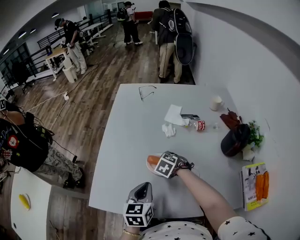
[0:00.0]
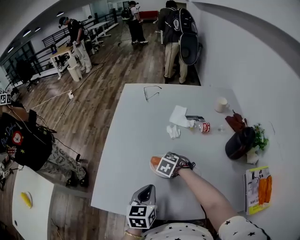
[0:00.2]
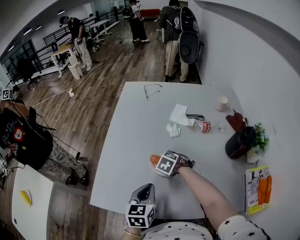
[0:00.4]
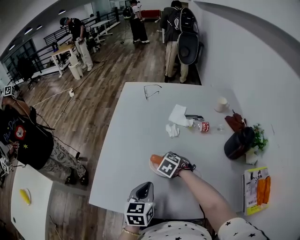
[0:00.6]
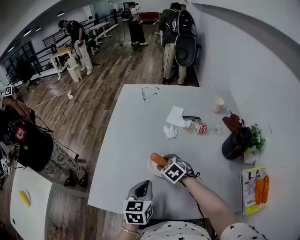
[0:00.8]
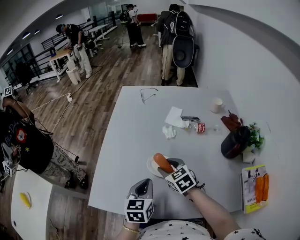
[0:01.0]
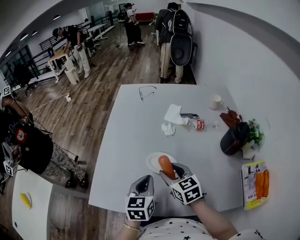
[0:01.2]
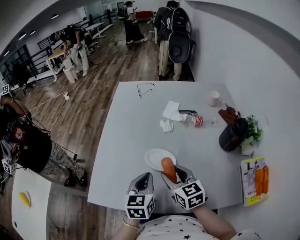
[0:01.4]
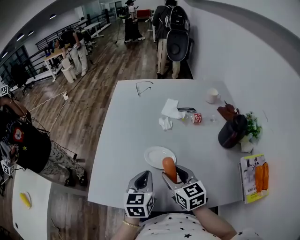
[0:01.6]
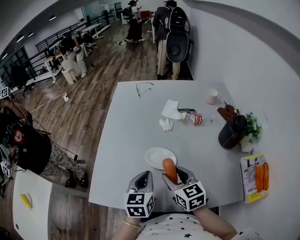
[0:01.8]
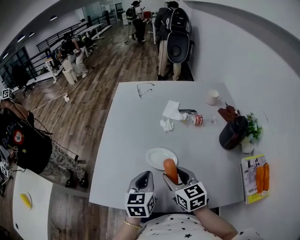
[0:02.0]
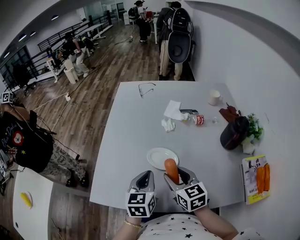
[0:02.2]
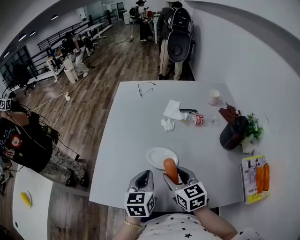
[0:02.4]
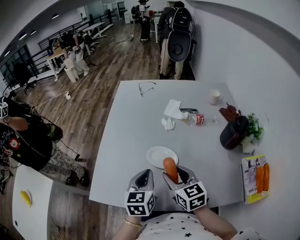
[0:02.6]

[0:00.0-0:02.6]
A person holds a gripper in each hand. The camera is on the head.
0.0 to 1.2 s: The right gripper is displaced upward and backward by roughly 15 cm, and points its fingers roughly 40 degrees further upward.
1.2 to 2.6 s: The right gripper moves approximately 5 cm.

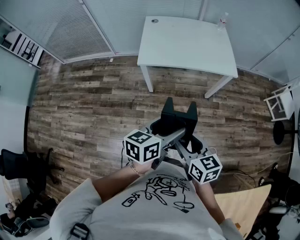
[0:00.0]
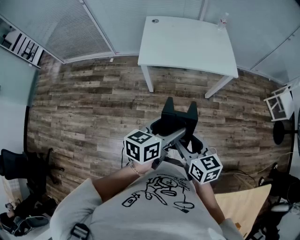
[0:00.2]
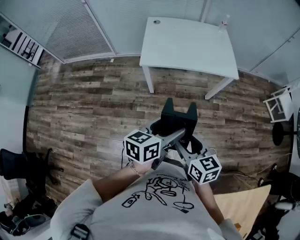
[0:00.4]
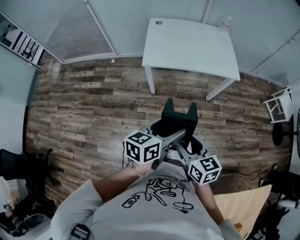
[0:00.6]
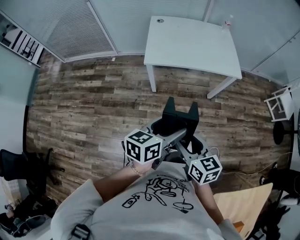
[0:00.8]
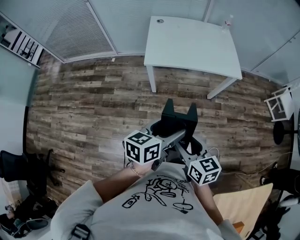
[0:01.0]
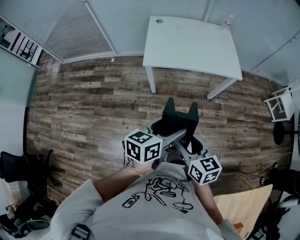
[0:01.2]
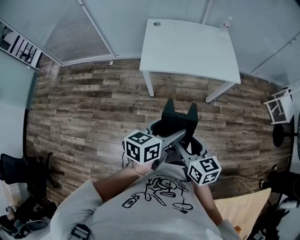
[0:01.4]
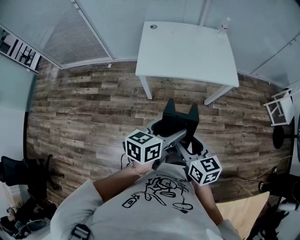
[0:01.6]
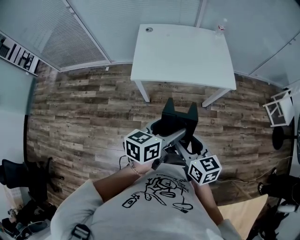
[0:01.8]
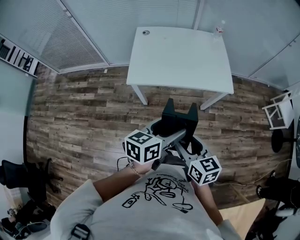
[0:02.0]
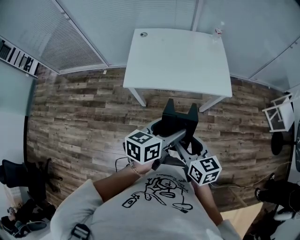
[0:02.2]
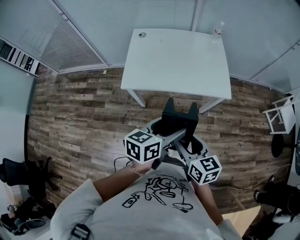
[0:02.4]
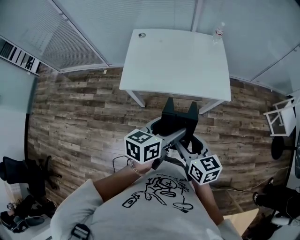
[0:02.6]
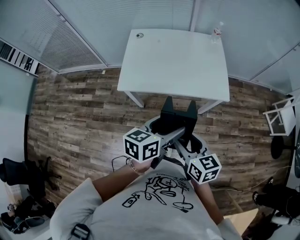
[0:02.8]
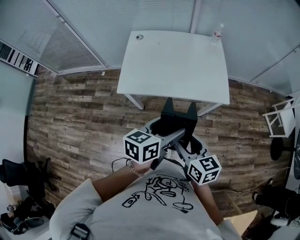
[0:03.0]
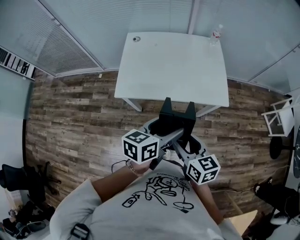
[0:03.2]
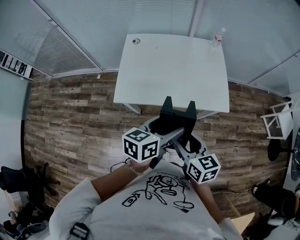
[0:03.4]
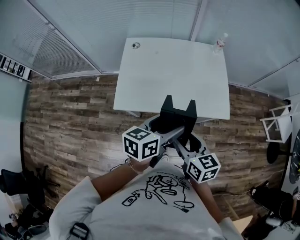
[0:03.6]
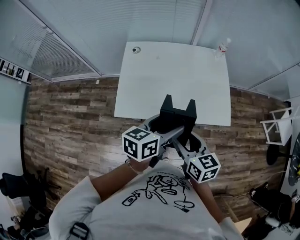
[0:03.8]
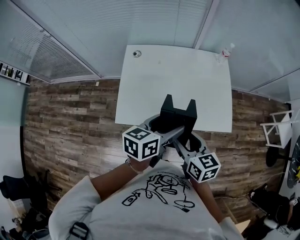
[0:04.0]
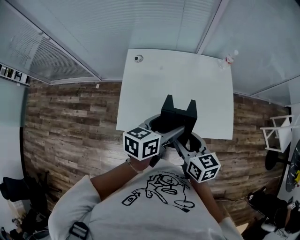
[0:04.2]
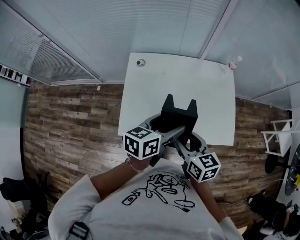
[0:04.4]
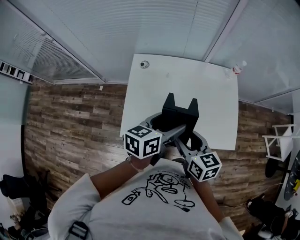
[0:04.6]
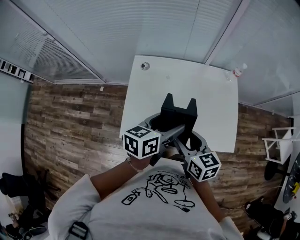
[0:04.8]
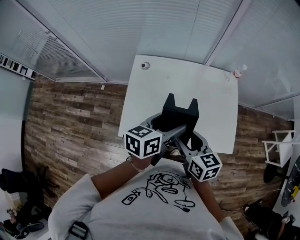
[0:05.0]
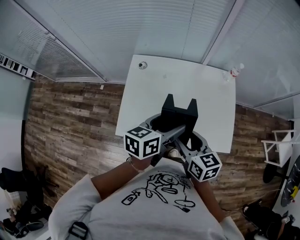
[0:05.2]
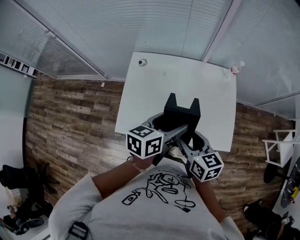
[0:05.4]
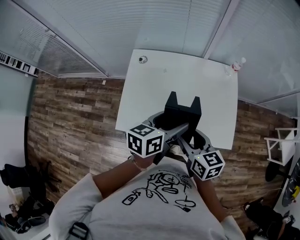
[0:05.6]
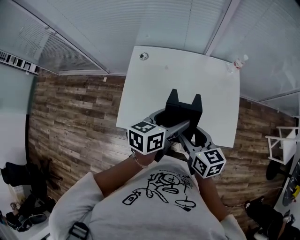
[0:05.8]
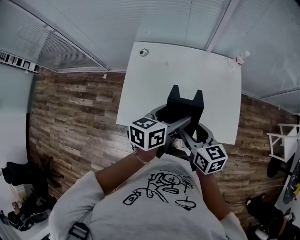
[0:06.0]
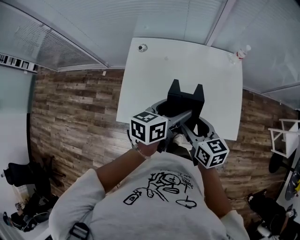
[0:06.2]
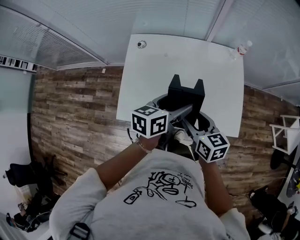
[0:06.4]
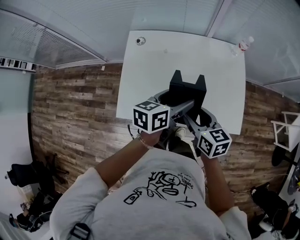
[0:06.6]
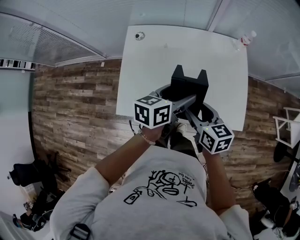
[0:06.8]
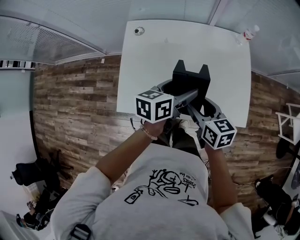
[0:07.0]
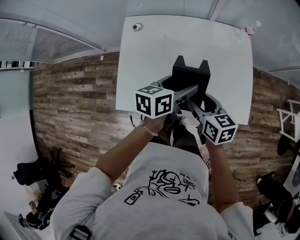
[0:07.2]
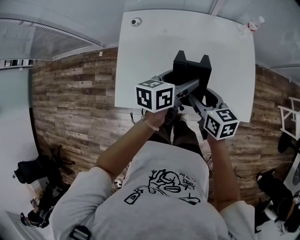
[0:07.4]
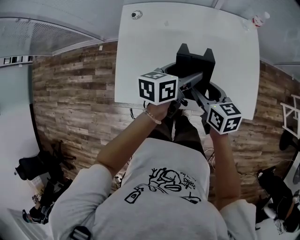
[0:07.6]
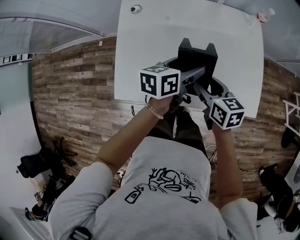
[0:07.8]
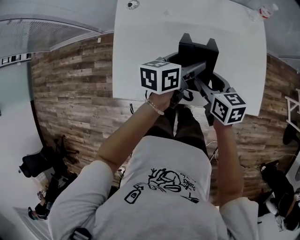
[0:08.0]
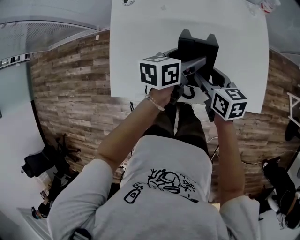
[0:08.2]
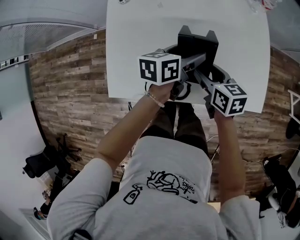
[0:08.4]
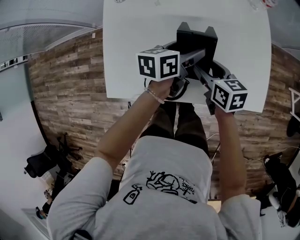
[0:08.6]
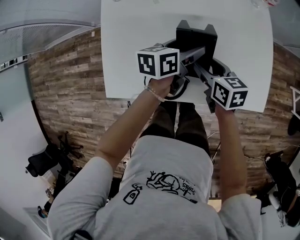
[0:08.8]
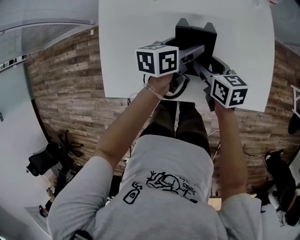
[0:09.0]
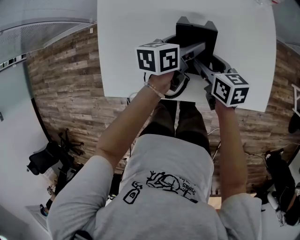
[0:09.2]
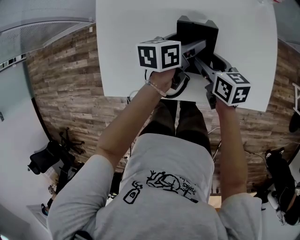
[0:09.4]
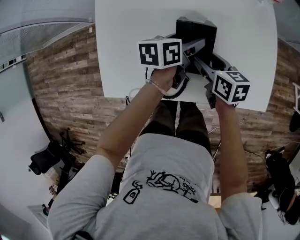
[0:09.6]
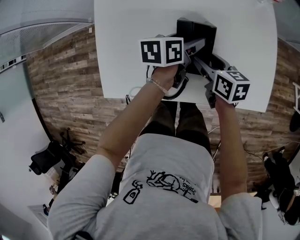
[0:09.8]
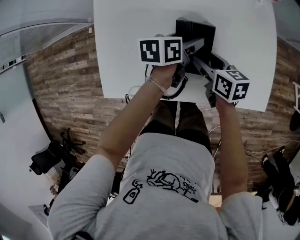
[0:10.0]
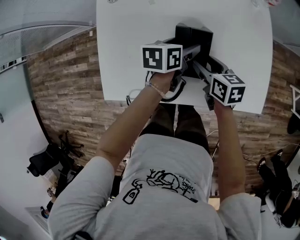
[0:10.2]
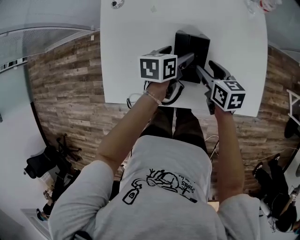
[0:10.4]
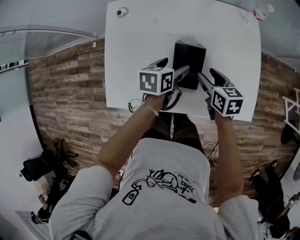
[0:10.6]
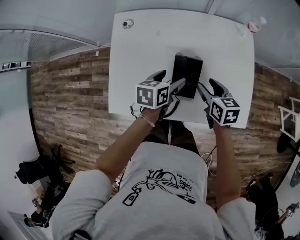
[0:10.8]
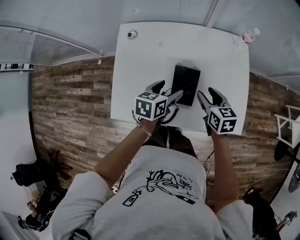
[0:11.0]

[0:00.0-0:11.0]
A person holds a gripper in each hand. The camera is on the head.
0.0 to 1.6 s: The grippers both shift forward by approximately 5 cm.
1.6 to 3.2 s: The two grippers go about 20 cm forward and to the right.
3.2 to 4.8 s: Both grippers move forward, some 30 cm.
4.8 to 6.2 s: Both grippers travel together to the right, some 5 cm.
6.2 to 7.8 s: Both grippers travel together downward and forward, about 15 cm.
7.8 to 9.4 s: Both grippers move downward and forward, roughly 10 cm.
9.4 to 11.0 s: The left gripper goes about 10 cm upward and backward; the right gripper moves upward and to the right, some 10 cm.

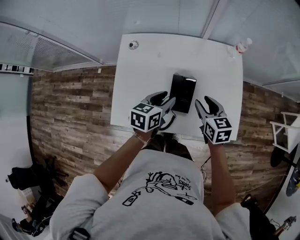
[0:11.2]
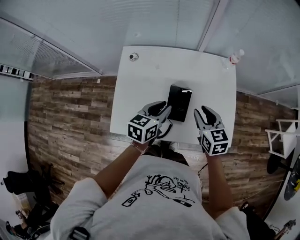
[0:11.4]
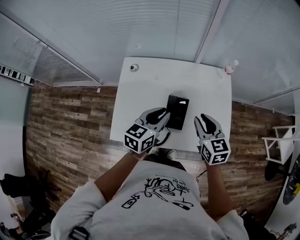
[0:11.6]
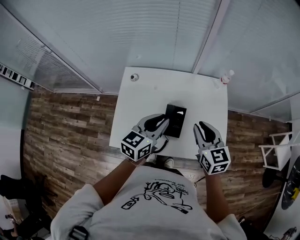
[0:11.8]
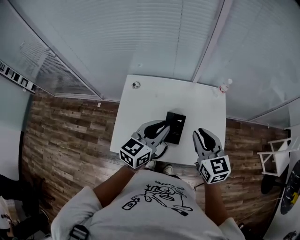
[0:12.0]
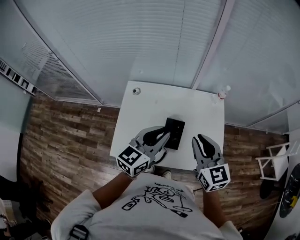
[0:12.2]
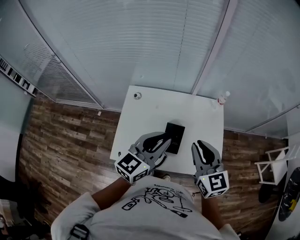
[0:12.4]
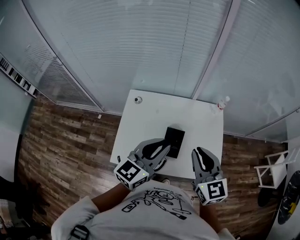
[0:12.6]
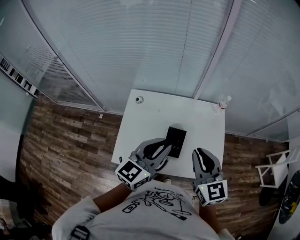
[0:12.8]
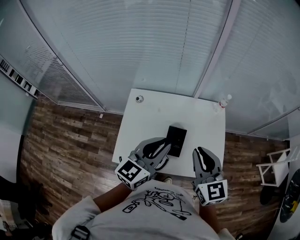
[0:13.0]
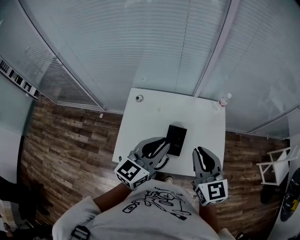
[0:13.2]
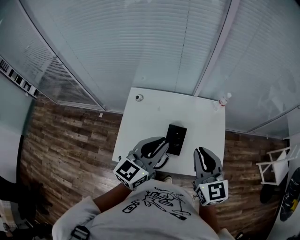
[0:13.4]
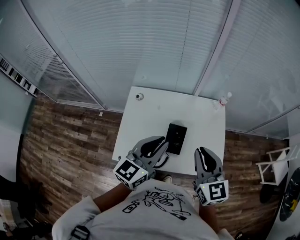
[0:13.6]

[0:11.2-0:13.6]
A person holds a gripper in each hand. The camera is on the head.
11.2 to 12.4 s: Both grippers move upward, some 25 cm. The right gripper swivels roughly 30 degrees, and closes, while the left gripper changes its angle by about 40 degrees.
12.4 to 13.6 s: There are only small adjustments of the grippers.

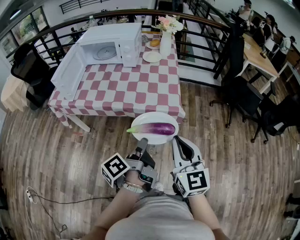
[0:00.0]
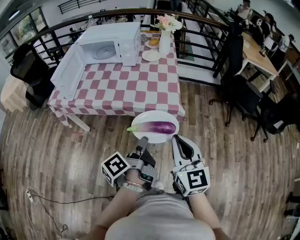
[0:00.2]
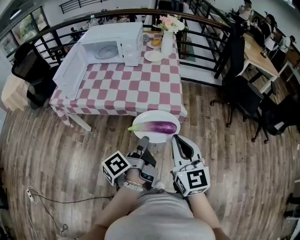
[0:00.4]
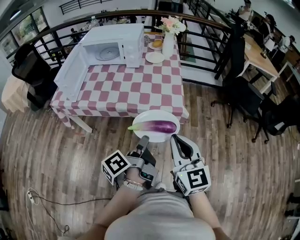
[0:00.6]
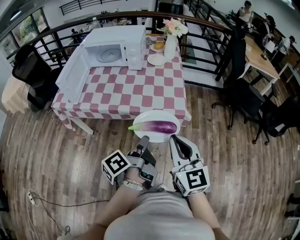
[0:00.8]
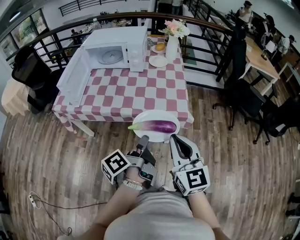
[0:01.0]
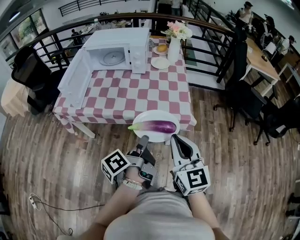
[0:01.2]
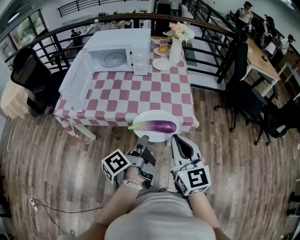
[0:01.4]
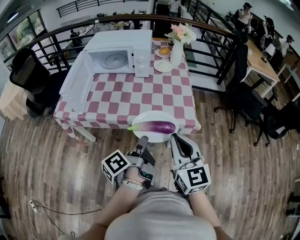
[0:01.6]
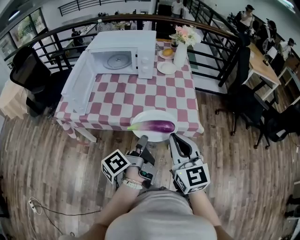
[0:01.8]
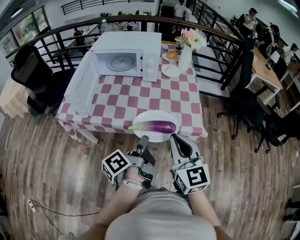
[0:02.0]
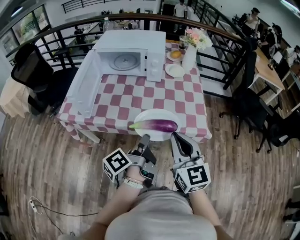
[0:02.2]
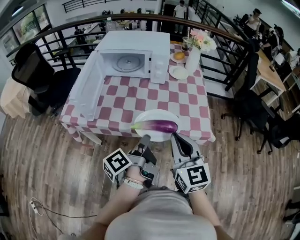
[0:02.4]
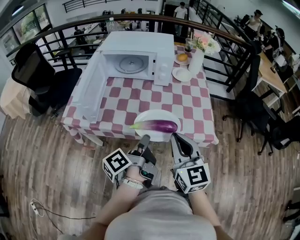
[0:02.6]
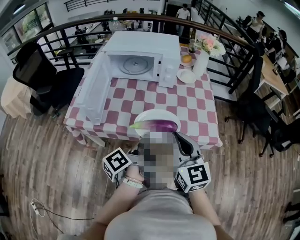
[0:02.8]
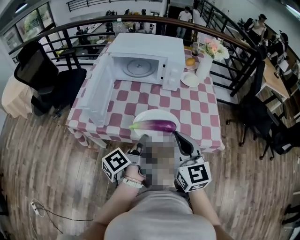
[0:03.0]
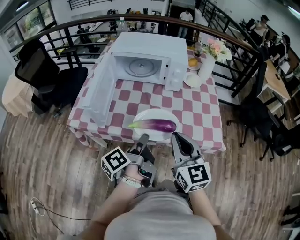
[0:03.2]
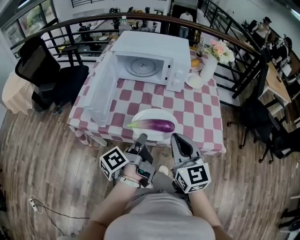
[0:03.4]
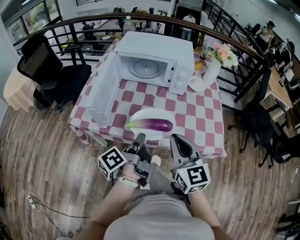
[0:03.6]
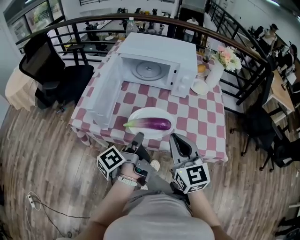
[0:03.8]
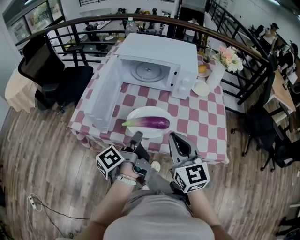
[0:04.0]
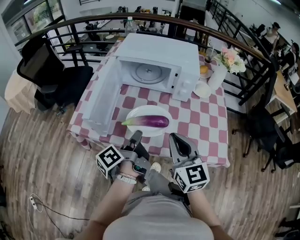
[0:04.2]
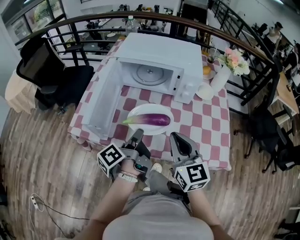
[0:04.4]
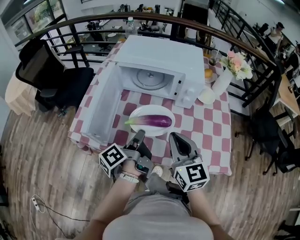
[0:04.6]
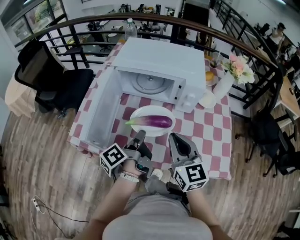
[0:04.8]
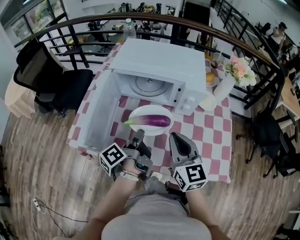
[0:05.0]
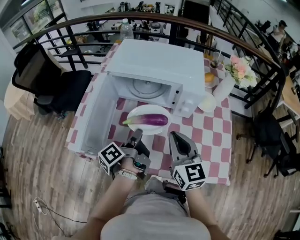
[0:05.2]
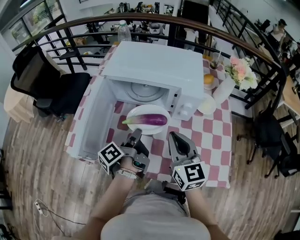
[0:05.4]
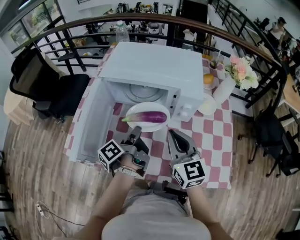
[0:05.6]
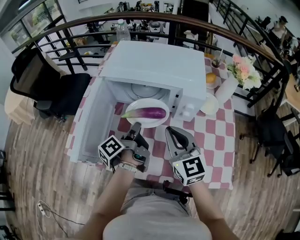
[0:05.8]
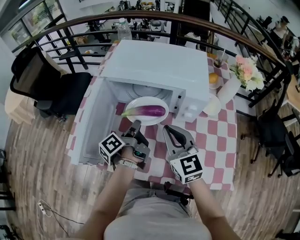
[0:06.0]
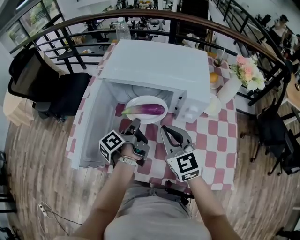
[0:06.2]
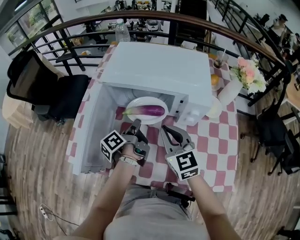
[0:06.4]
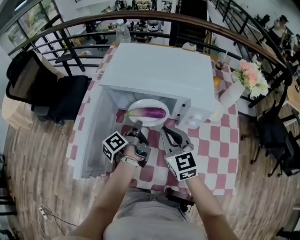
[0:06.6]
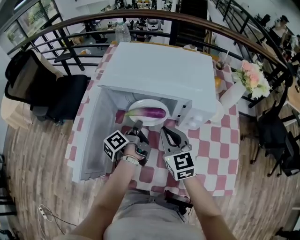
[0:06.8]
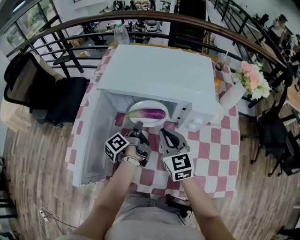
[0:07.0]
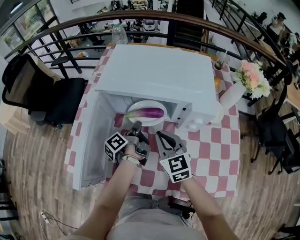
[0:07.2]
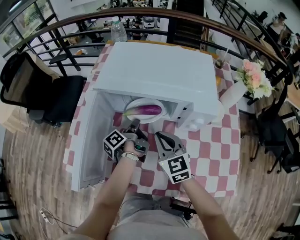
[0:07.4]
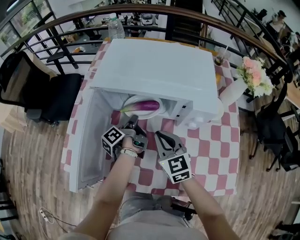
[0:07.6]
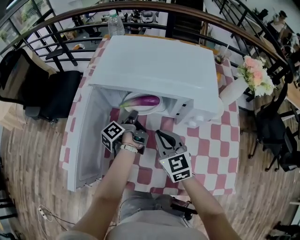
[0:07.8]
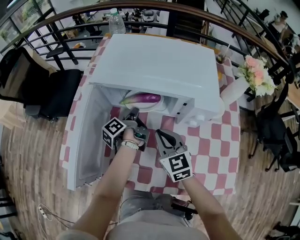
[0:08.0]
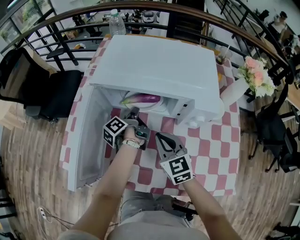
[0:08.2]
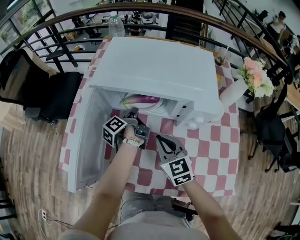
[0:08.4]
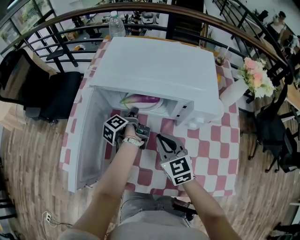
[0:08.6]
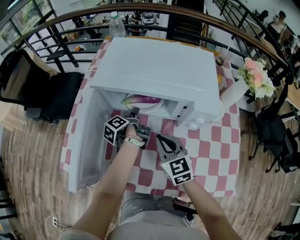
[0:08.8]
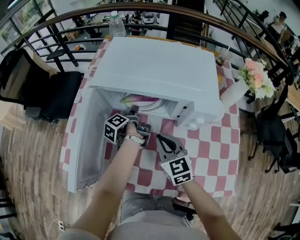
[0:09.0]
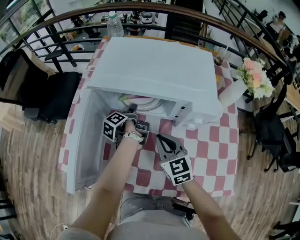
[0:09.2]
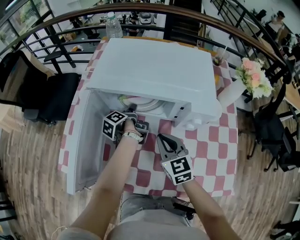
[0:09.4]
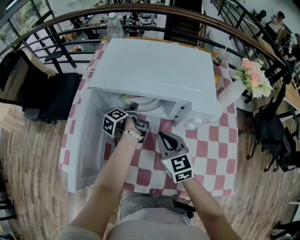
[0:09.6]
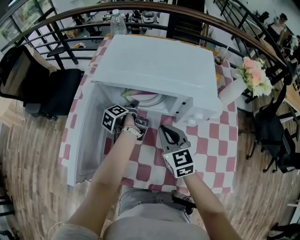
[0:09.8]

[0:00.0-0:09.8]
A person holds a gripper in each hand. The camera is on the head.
0.0 to 1.4 s: The right gripper shifts by approximately 10 cm.
1.4 to 2.8 s: The right gripper changes place by about 20 cm.
2.8 to 4.2 s: The right gripper changes place by some 10 cm.
4.2 to 5.6 s: The right gripper changes place by about 20 cm.
5.6 to 7.0 s: The right gripper changes place by about 15 cm.
